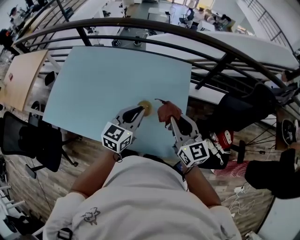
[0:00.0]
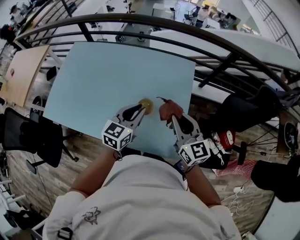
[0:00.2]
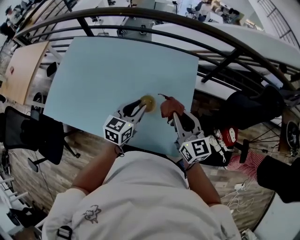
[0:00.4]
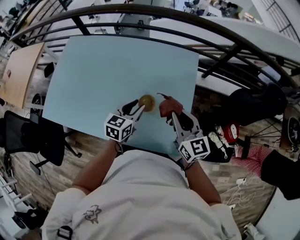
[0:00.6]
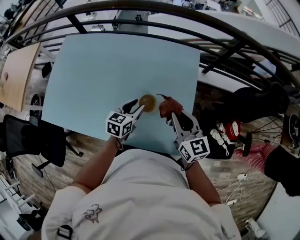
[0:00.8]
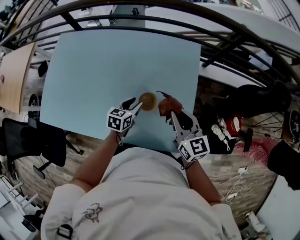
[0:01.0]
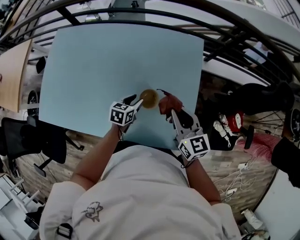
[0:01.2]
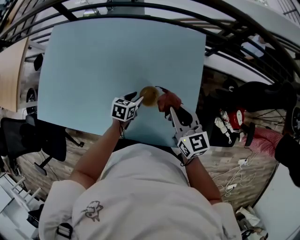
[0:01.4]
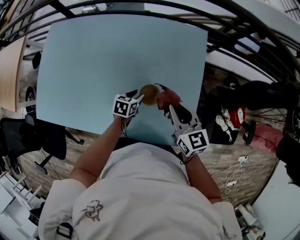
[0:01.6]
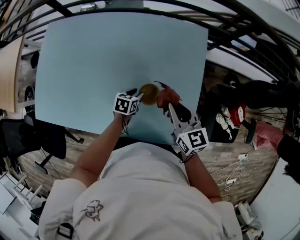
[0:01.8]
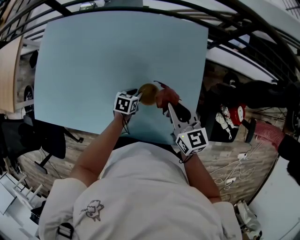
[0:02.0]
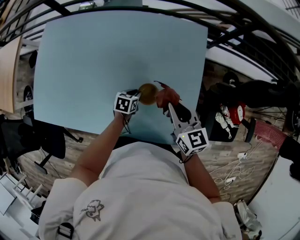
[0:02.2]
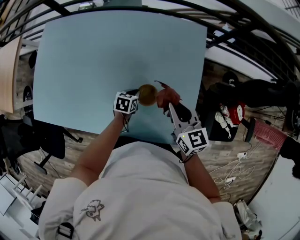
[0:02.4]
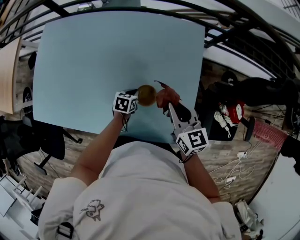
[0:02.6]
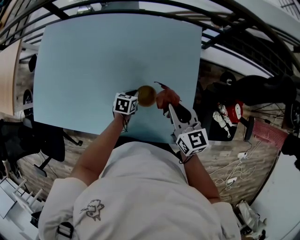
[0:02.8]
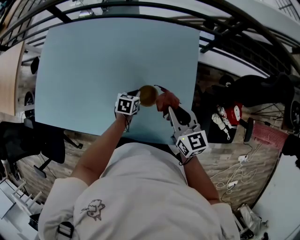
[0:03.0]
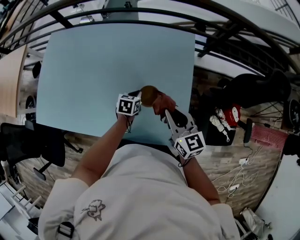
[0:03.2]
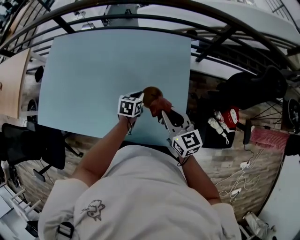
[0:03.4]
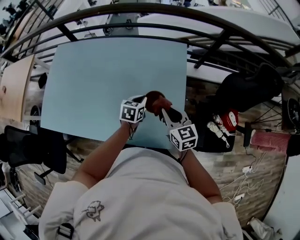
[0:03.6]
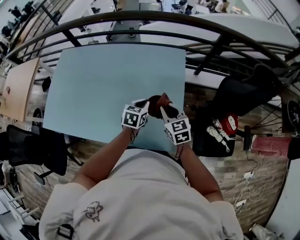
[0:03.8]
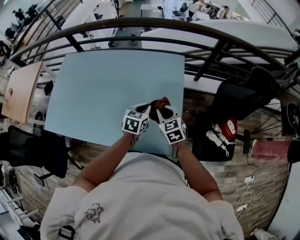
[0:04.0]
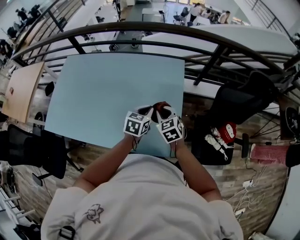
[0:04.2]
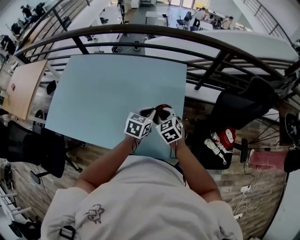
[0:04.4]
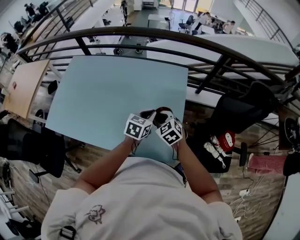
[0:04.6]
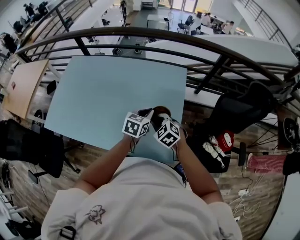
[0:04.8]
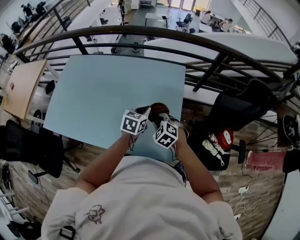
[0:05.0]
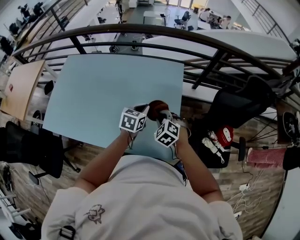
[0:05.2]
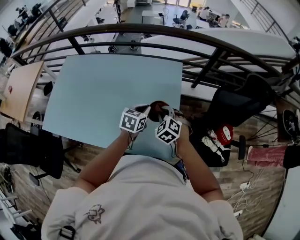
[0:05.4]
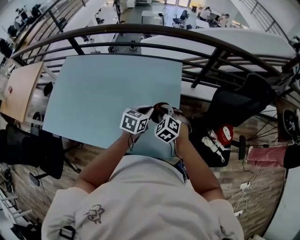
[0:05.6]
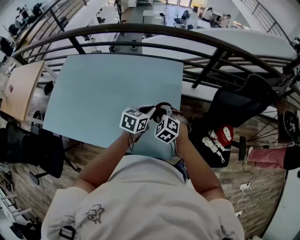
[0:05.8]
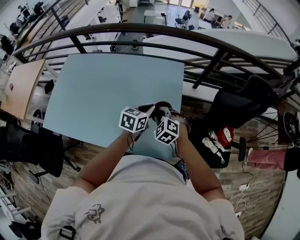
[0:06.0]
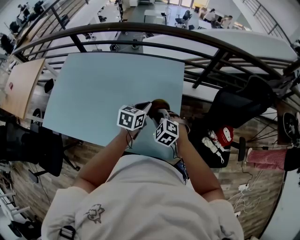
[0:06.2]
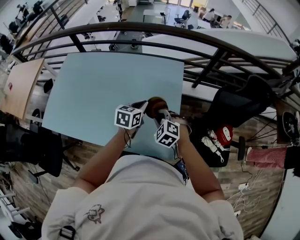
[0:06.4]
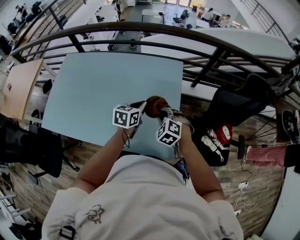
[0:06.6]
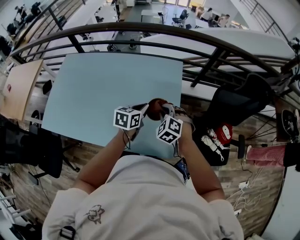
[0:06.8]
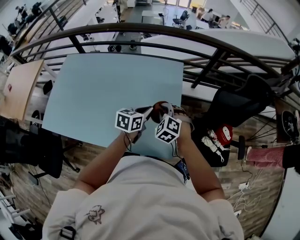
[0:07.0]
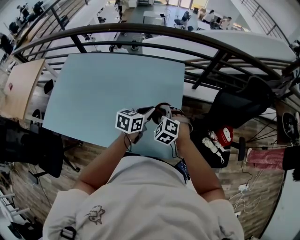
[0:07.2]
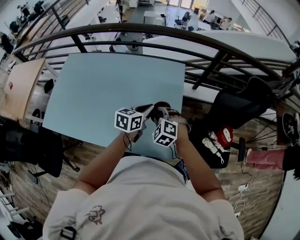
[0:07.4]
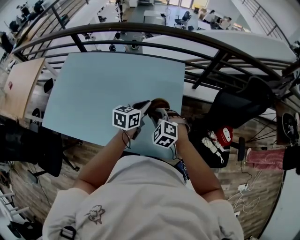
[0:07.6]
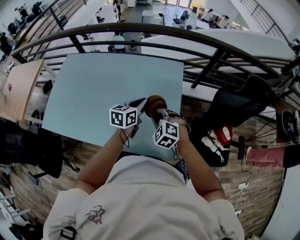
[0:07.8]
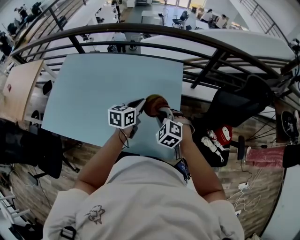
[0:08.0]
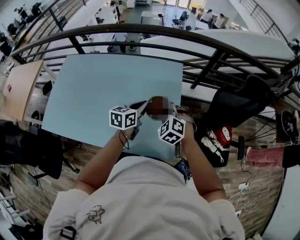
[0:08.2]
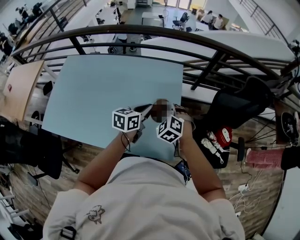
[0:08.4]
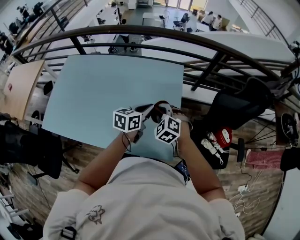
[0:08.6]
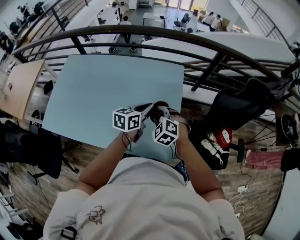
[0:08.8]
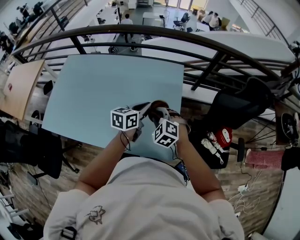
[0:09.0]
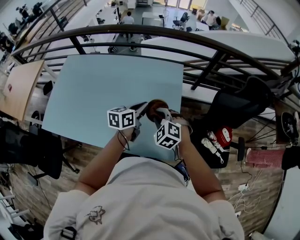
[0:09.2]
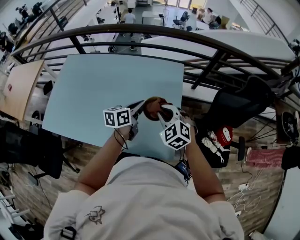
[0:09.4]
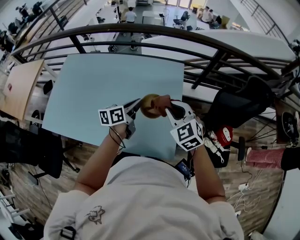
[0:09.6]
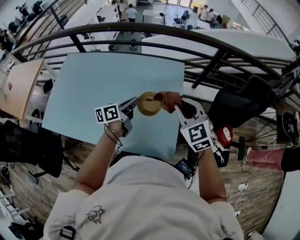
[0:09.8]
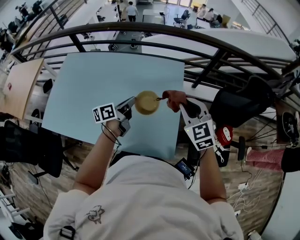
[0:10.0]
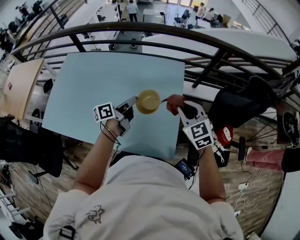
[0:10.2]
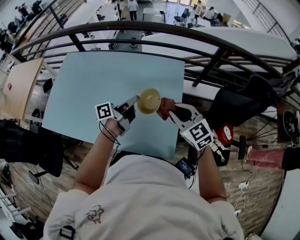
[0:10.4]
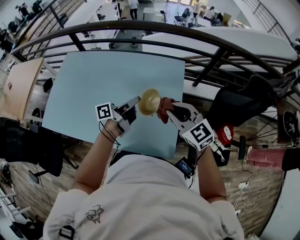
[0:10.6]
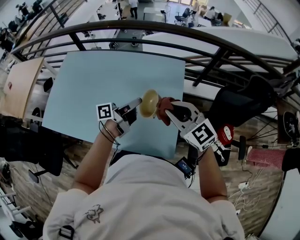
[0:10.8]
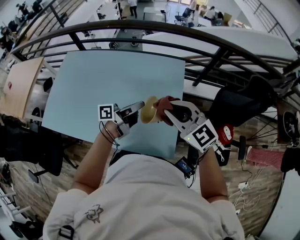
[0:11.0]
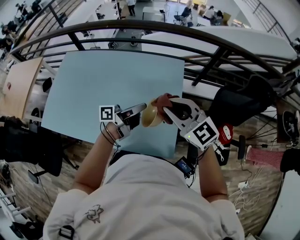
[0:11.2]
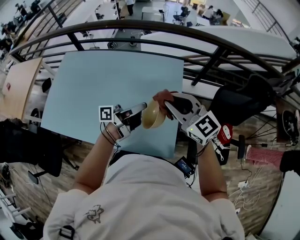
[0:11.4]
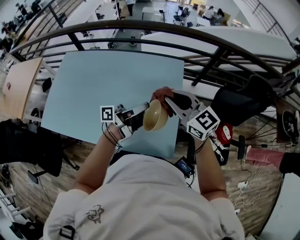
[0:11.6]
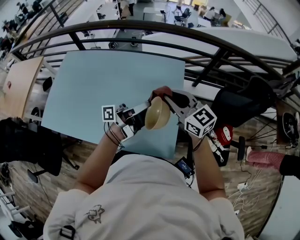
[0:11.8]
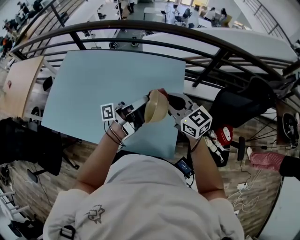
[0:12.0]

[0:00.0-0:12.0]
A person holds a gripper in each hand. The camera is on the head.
0:00.0 to 0:01.6: The left gripper is displaced downward by roughly 30 cm, tips its fingers downward by about 40 degrees, and opens, while the right gripper travels downward and forward by about 15 cm.
0:01.6 to 0:03.0: The left gripper closes.
0:03.0 to 0:04.4: The right gripper turns by some 30 degrees, while the left gripper shifts roughly 25 cm upward and to the right, and changes its angle by approximately 20 degrees.
0:04.4 to 0:06.0: The right gripper turns by some 30 degrees.
0:06.0 to 0:07.6: The grippers make only small movements.
0:09.0 to 0:10.4: The left gripper is displaced to the left by about 5 cm, and rotates some 50 degrees; the right gripper moves upward and to the right, some 10 cm, and turns by some 30 degrees.
0:10.4 to 0:12.0: The left gripper moves upward and to the right, about 10 cm, and rotates approximately 30 degrees. Meanwhile the right gripper shifts by some 5 cm, and swivels about 20 degrees.

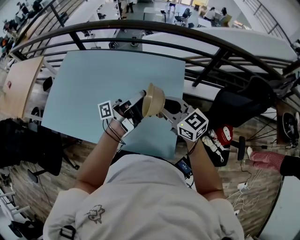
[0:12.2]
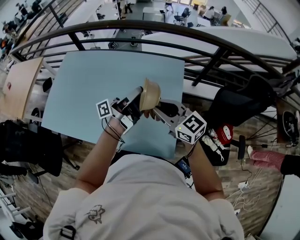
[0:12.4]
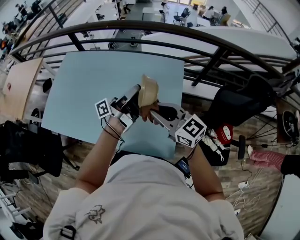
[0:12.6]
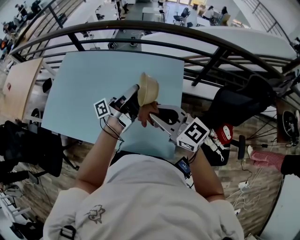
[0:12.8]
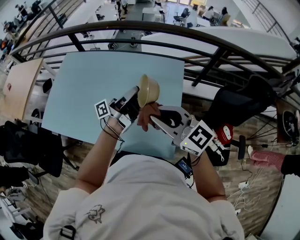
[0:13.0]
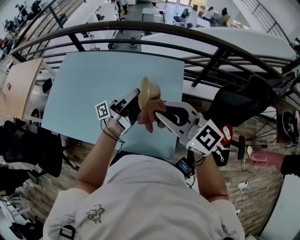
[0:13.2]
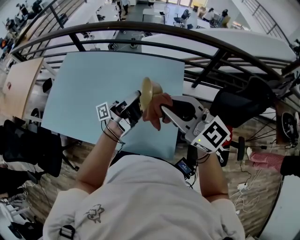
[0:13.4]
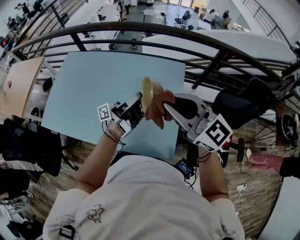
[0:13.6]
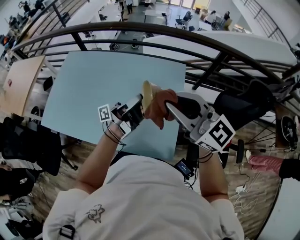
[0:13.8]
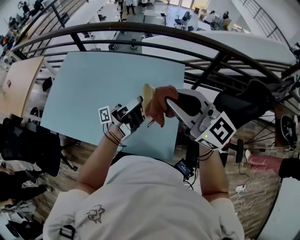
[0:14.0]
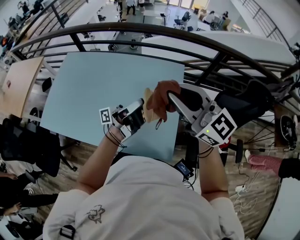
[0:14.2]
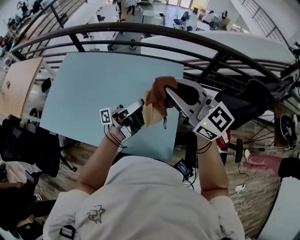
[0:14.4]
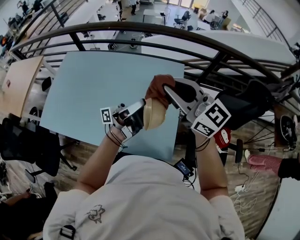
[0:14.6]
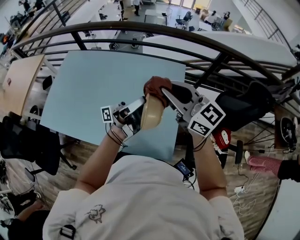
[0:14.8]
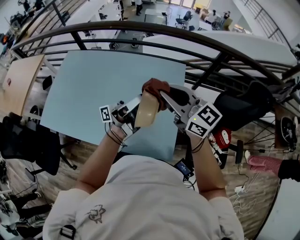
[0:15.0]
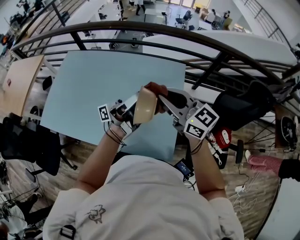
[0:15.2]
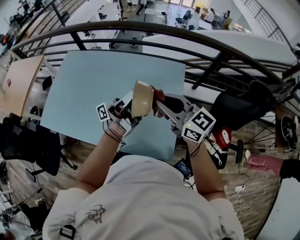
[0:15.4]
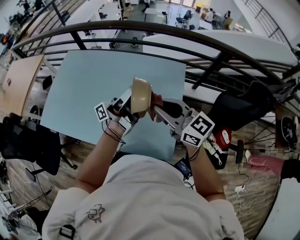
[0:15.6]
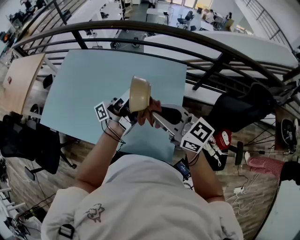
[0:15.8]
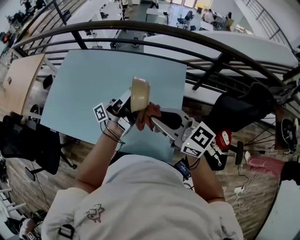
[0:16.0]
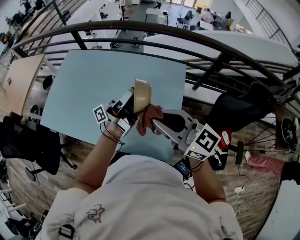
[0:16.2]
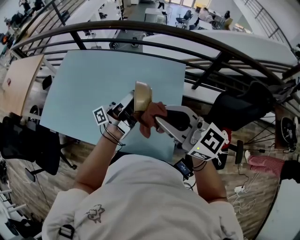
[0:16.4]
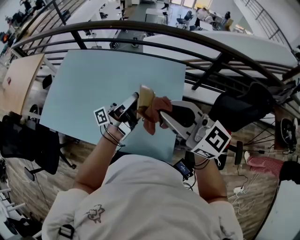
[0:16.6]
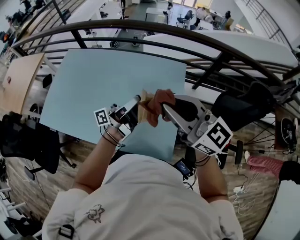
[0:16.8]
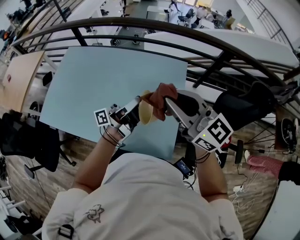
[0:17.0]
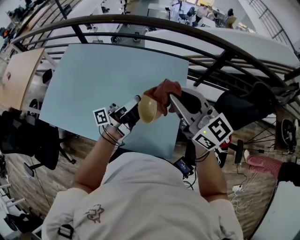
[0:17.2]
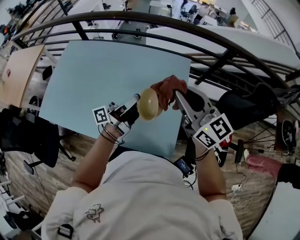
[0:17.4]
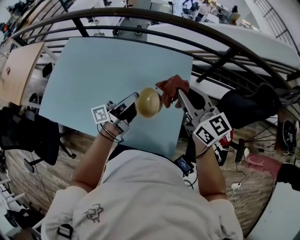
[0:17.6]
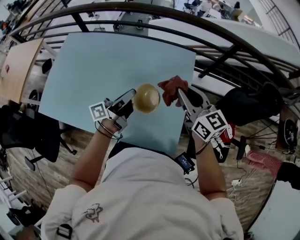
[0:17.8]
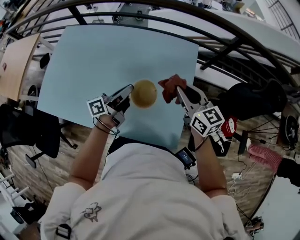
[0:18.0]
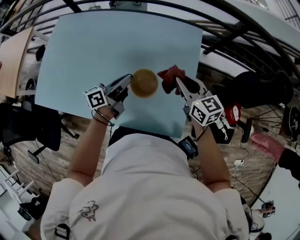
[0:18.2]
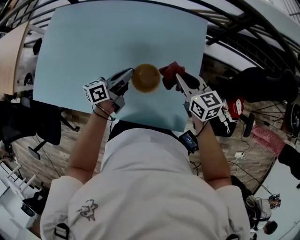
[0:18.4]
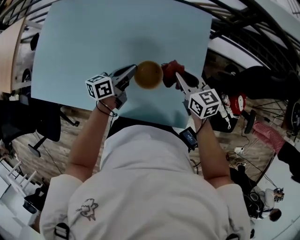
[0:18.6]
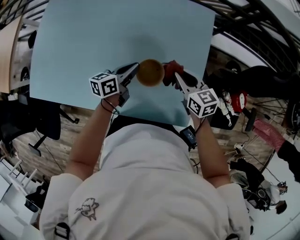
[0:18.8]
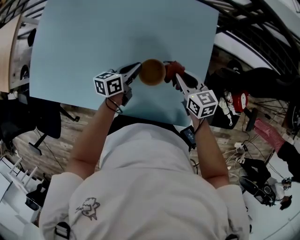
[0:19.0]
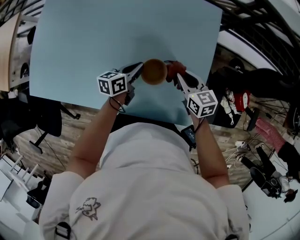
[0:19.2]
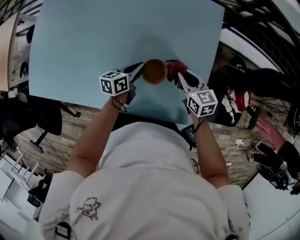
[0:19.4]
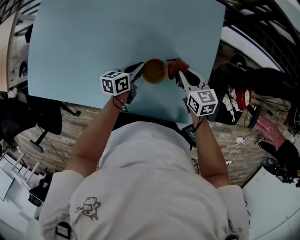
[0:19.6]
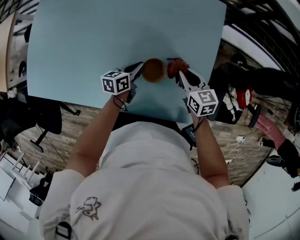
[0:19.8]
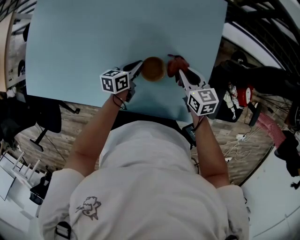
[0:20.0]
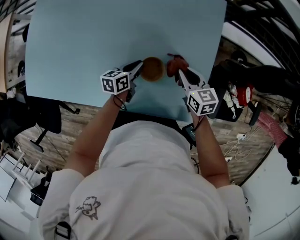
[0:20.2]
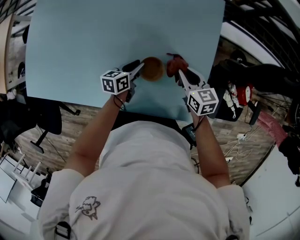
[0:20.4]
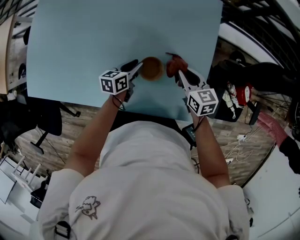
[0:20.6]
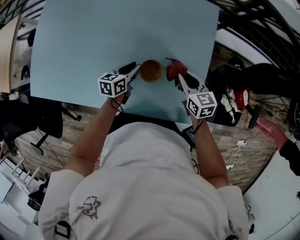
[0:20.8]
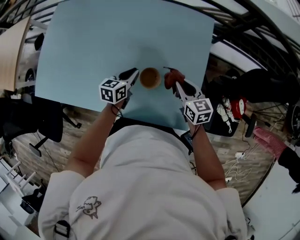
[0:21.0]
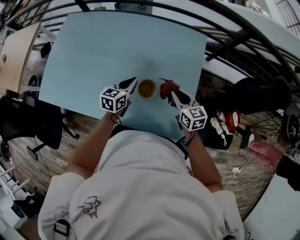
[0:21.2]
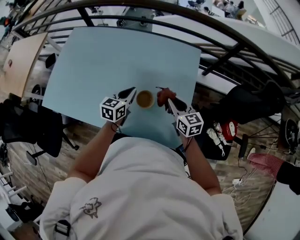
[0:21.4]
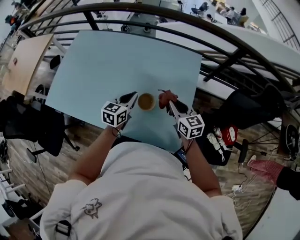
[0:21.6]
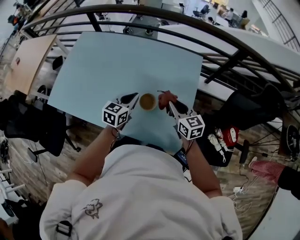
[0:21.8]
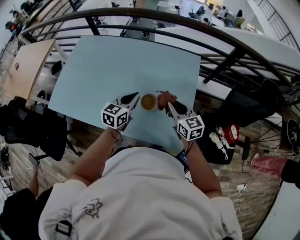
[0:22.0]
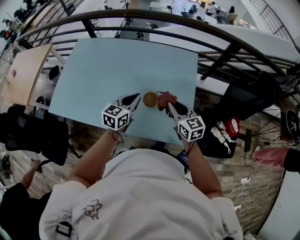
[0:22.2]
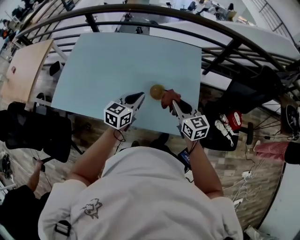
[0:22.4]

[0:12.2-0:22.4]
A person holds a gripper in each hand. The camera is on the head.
0:12.2 to 0:13.6: The right gripper travels upward by approximately 15 cm.
0:13.6 to 0:15.2: The left gripper shifts roughly 5 cm upward. Meanwhile the right gripper shifts roughly 10 cm downward and forward.
0:15.2 to 0:16.6: The right gripper is displaced backward and upward by some 10 cm.
0:16.6 to 0:18.0: The left gripper travels downward and to the left by roughly 15 cm, and points its fingers roughly 30 degrees further downward; the right gripper travels downward and forward by about 20 cm, and swivels about 30 degrees.
0:18.0 to 0:19.4: The grippers both shift downward by approximately 20 cm. The left gripper points its fingers approximately 30 degrees further downward, while the right gripper swivels approximately 20 degrees.
0:19.4 to 0:21.0: Both grippers travel together upward, some 5 cm.
0:21.0 to 0:22.4: The left gripper heads upward and backward, covering approximately 20 cm, and rotates approximately 20 degrees. The right gripper is displaced upward, backward and to the left by about 20 cm.

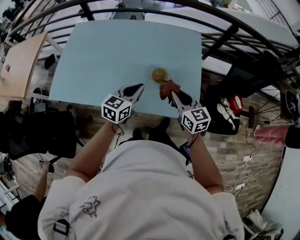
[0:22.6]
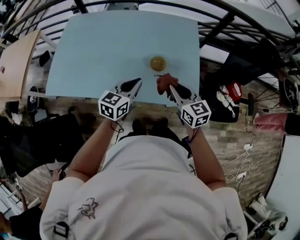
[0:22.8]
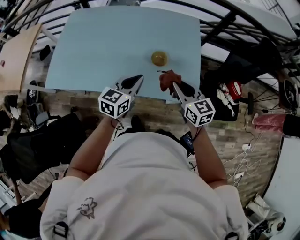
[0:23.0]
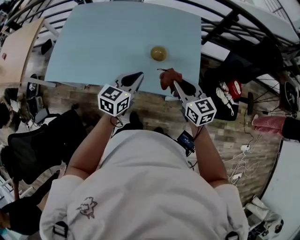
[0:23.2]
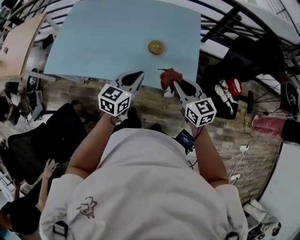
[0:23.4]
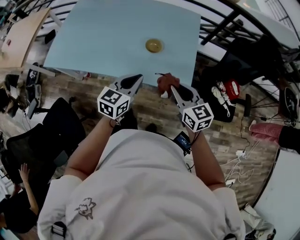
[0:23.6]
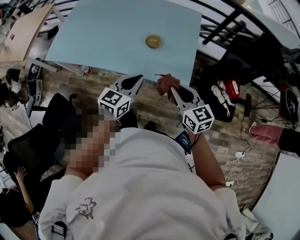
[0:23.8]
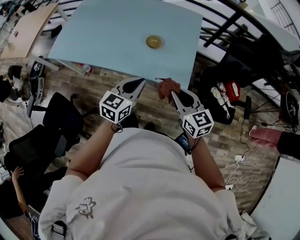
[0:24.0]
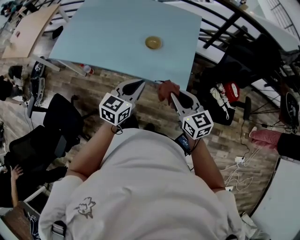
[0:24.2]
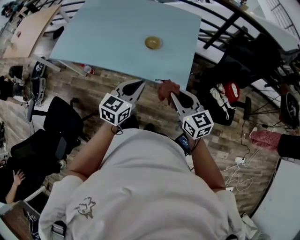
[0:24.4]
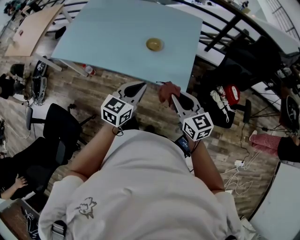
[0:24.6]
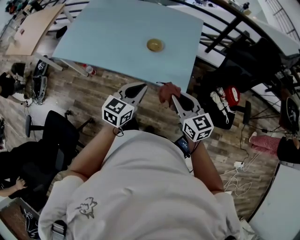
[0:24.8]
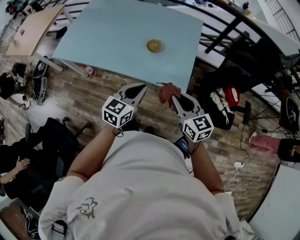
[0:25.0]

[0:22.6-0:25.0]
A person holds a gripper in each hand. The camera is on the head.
0:22.6 to 0:23.8: The two grippers go some 20 cm backward and to the right.
0:23.8 to 0:25.0: The left gripper shifts some 5 cm backward. Meanwhile the right gripper moves some 5 cm.
